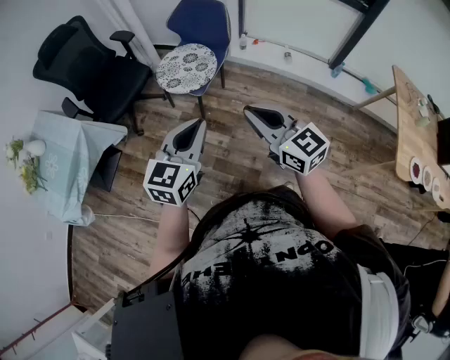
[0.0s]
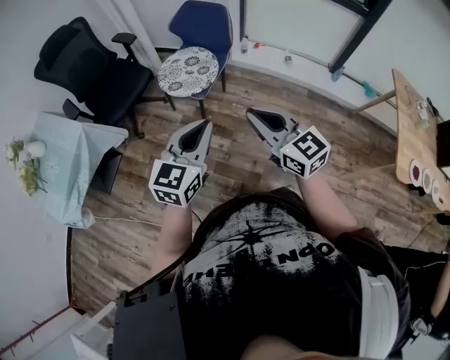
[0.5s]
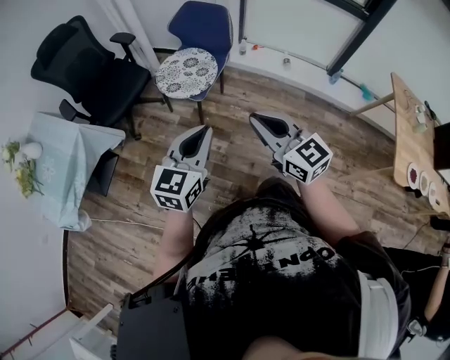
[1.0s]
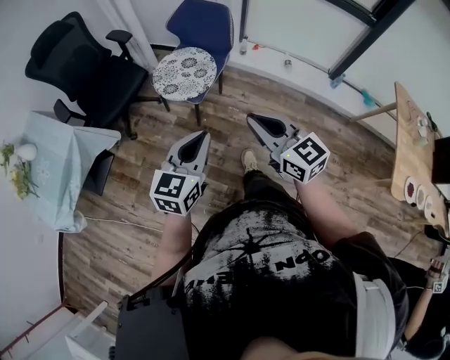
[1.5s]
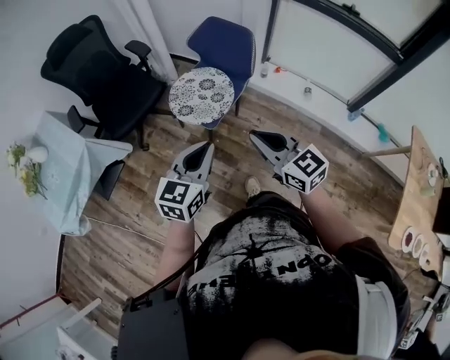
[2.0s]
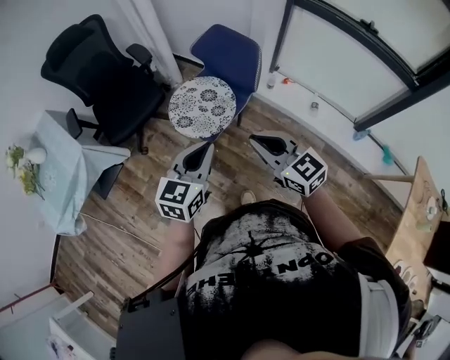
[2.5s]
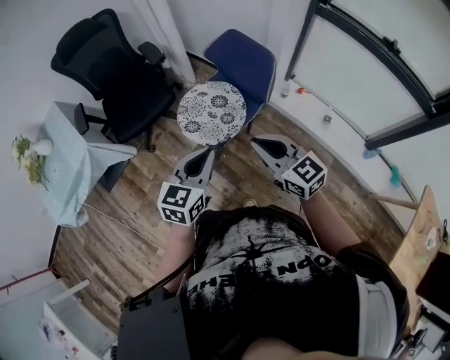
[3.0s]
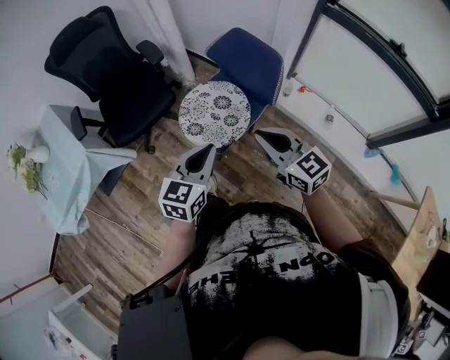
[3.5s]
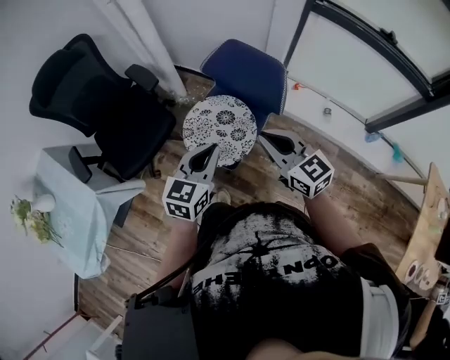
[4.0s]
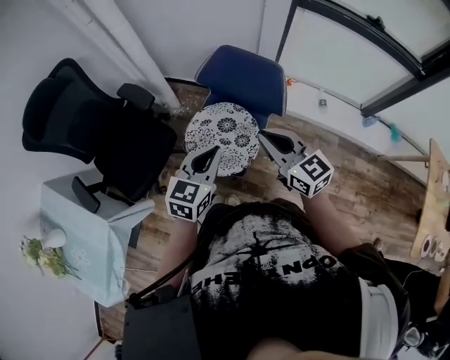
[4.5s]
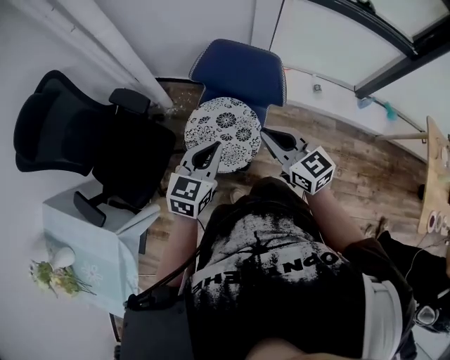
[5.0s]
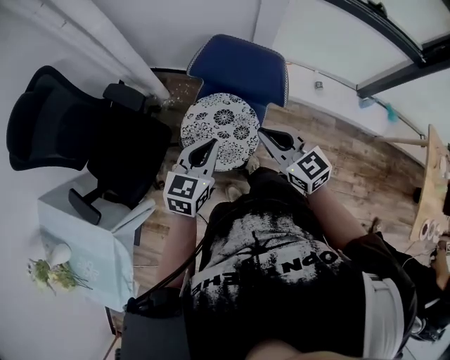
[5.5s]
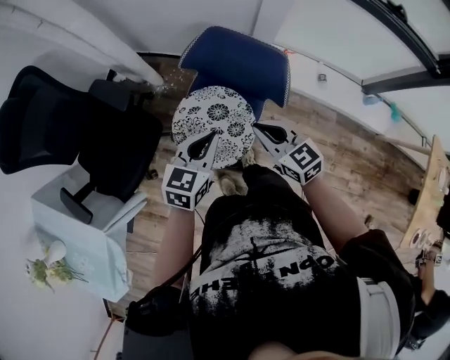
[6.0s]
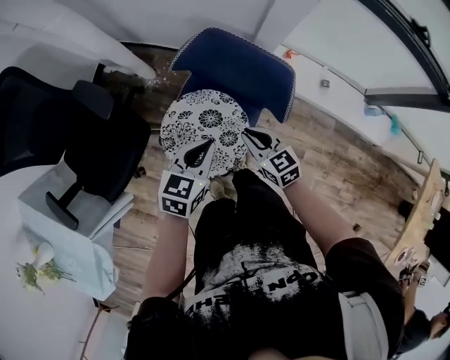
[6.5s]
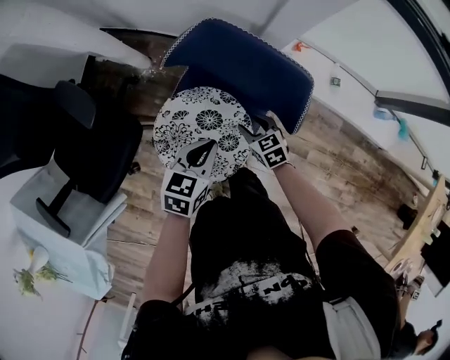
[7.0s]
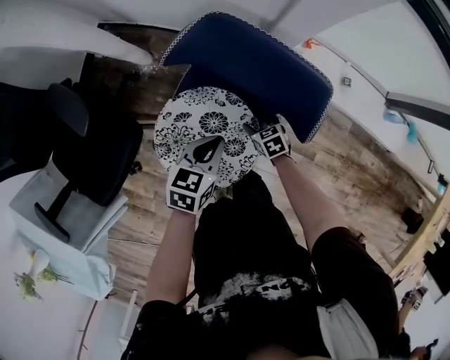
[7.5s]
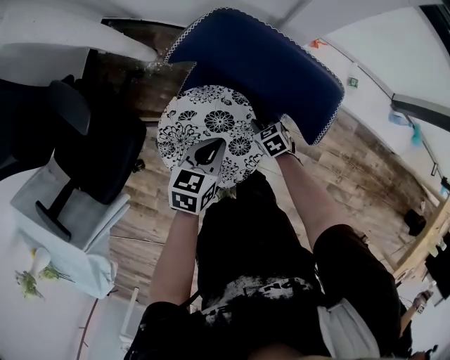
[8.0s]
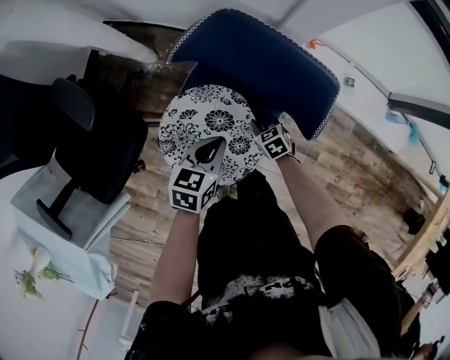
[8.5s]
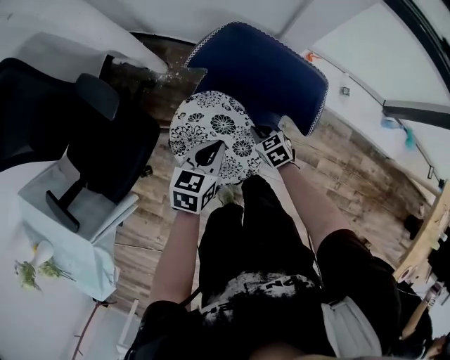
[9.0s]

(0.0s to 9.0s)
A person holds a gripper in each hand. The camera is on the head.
0.0s - 2.0s: The grippers both shift forward by about 15 cm.
2.0s - 4.5s: The grippers both shift forward by about 35 cm.
4.5s - 7.0s: The left gripper is displaced downward and forward by approximately 30 cm, and rotates roughly 20 degrees, while the right gripper is displaced downward and forward by roughly 50 cm, angles its fingers downward, by roughly 40 degrees, and opens up.
7.0s - 9.0s: The left gripper goes downward and returns, roughly 5 cm each way. Meanwhile the right gripper travels downward and back again, about 10 cm each way, and closes.

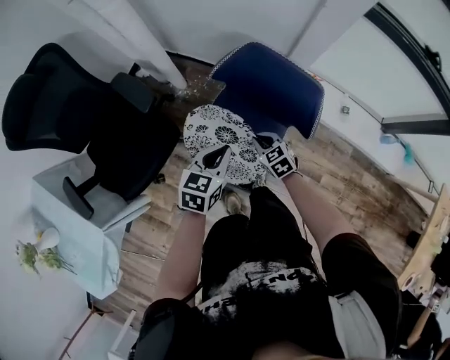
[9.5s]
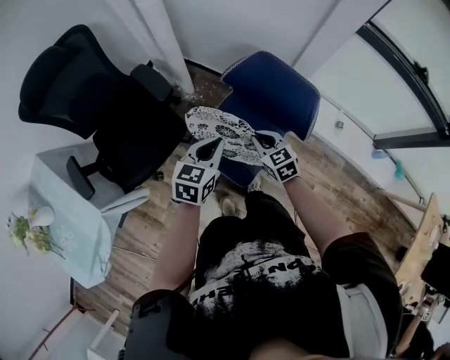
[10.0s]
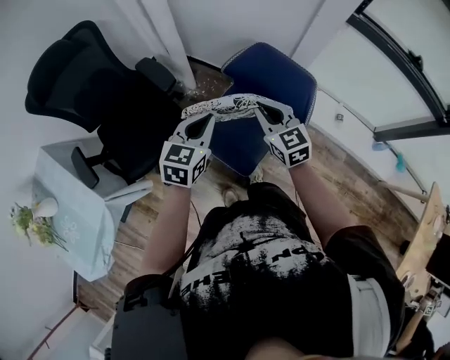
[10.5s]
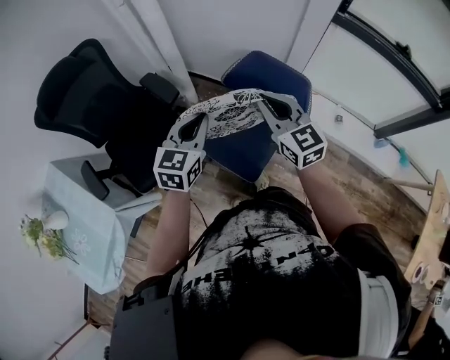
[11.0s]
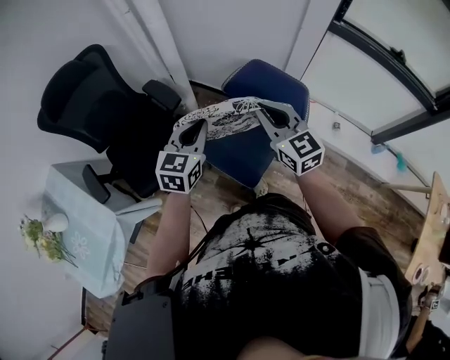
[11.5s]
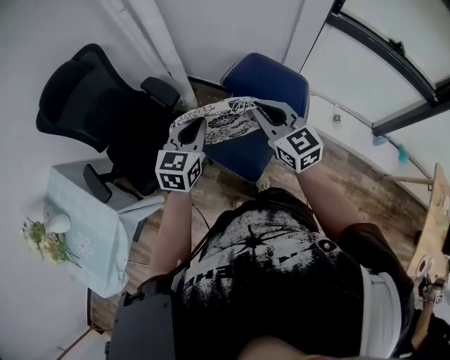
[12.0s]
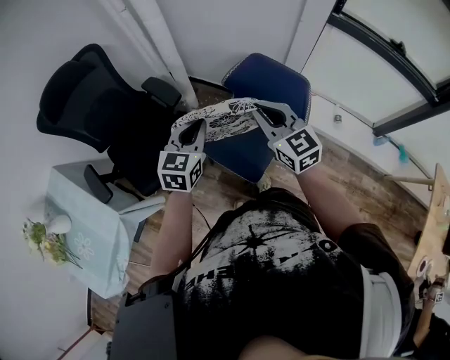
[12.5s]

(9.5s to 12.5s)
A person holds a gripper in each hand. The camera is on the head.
9.5s - 11.0s: The left gripper moves upward and to the left, about 20 cm, and rotates some 20 degrees; the right gripper shifts roughly 40 cm upward, and tilts its fingers about 40 degrees upward.
11.0s - 12.5s: There are only small adjustments of the grippers.

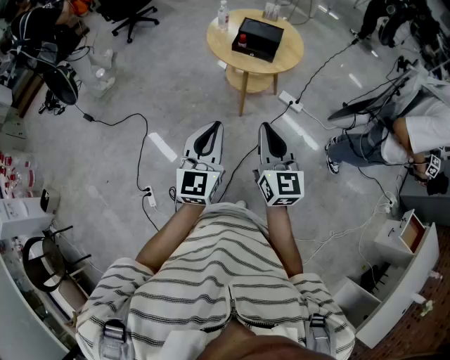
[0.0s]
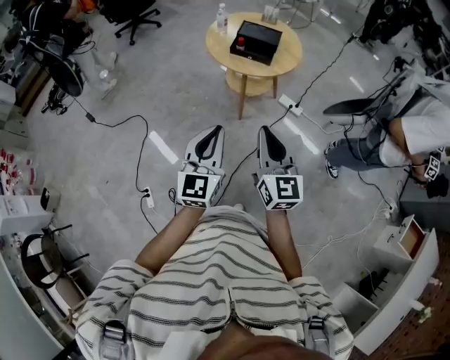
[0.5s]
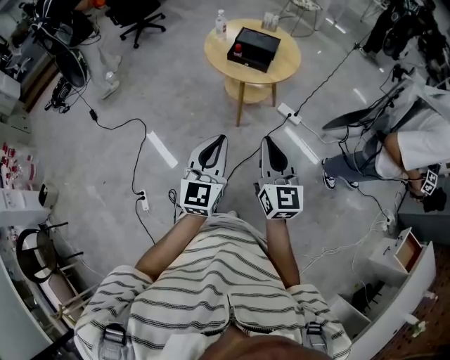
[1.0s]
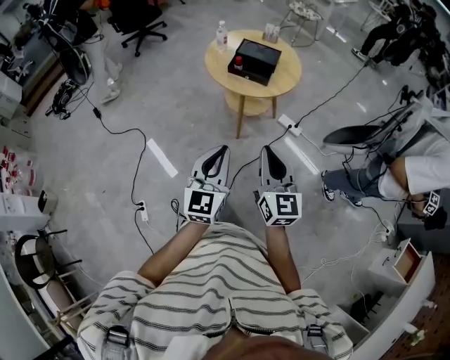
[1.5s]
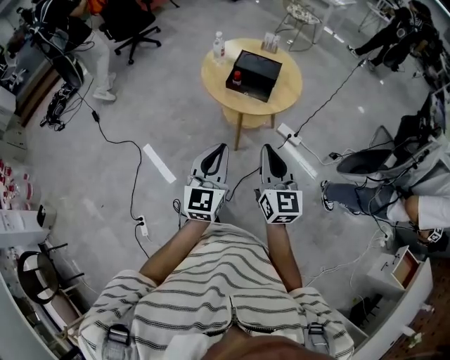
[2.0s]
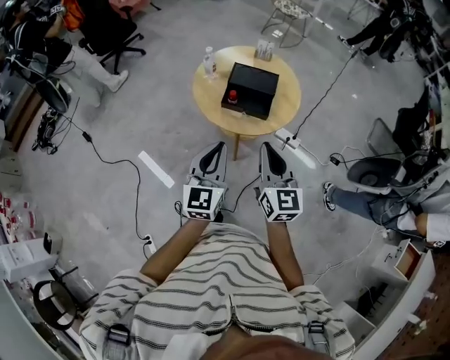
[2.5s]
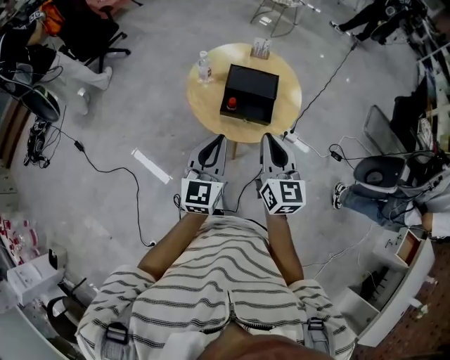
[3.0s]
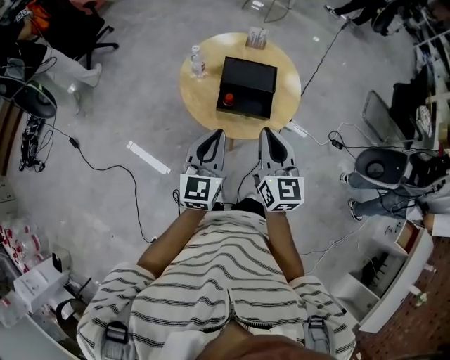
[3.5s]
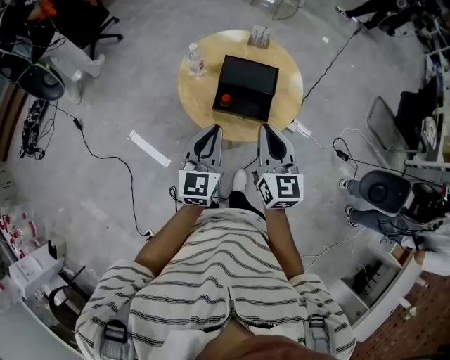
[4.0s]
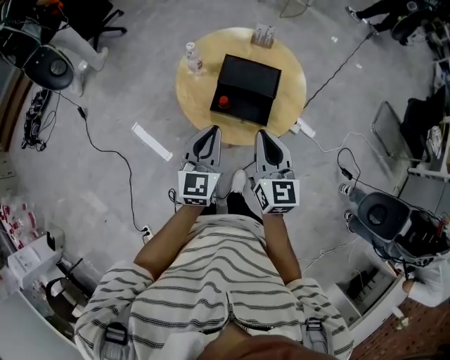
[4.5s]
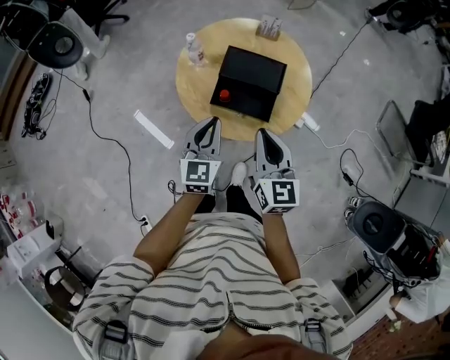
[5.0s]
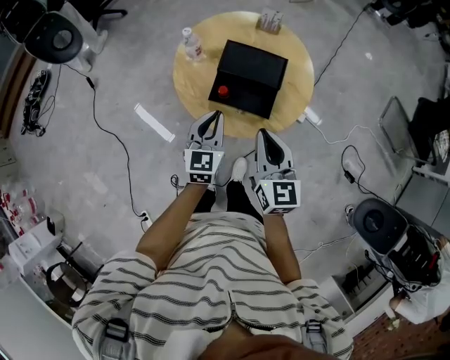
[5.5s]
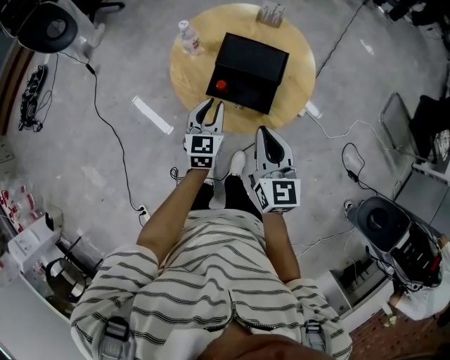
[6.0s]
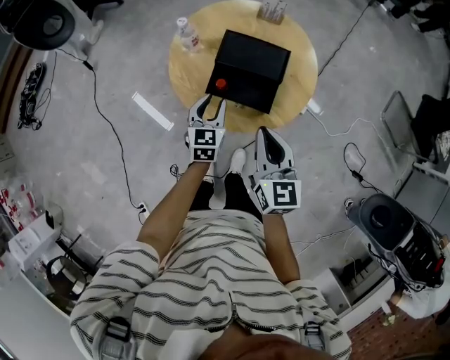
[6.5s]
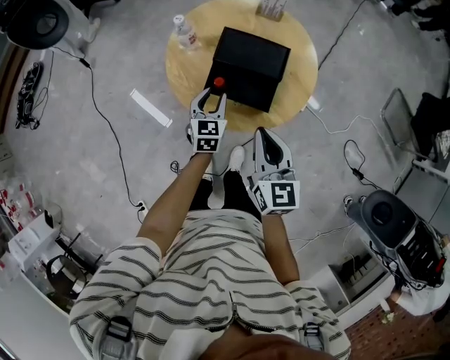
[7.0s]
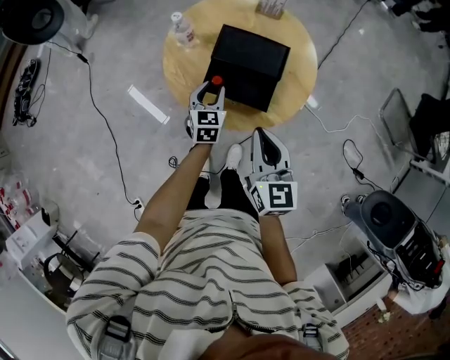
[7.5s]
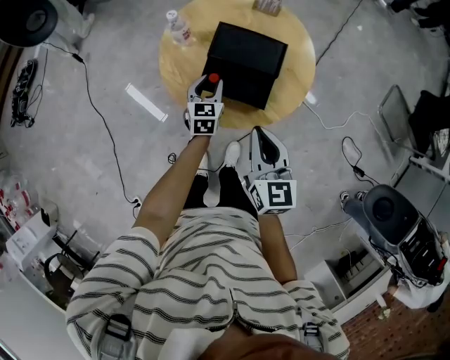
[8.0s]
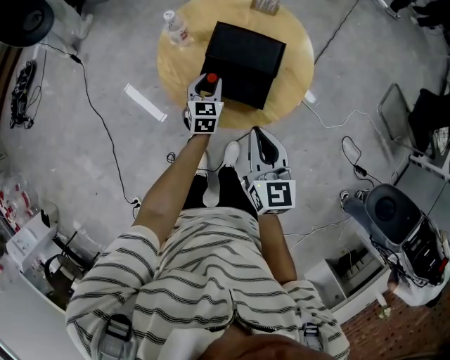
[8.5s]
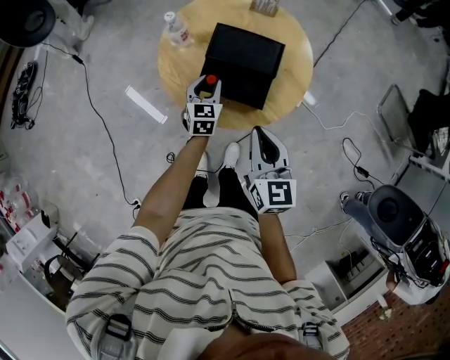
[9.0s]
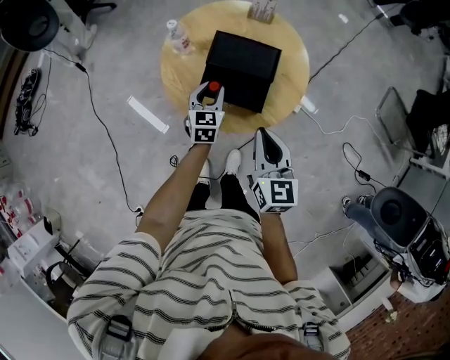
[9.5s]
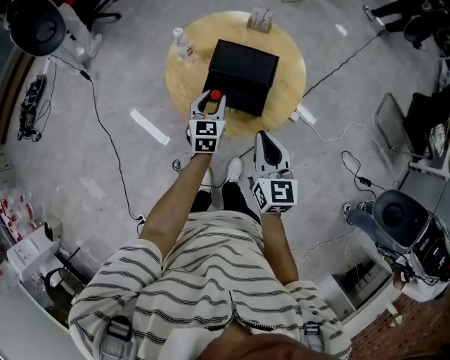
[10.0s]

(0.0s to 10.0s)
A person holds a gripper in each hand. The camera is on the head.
0.0s - 2.0s: Both grippers travel together forward and to the right, approximately 15 cm.
2.0s - 4.0s: Both grippers travel together forward, approximately 30 cm.
4.0s - 6.0s: The right gripper goes some 10 cm downward. Meanwhile the left gripper goes about 20 cm downward and forward.
6.0s - 8.0s: The left gripper moves downward and forward, roughly 10 cm.
8.0s - 10.0s: The left gripper goes about 5 cm upward.

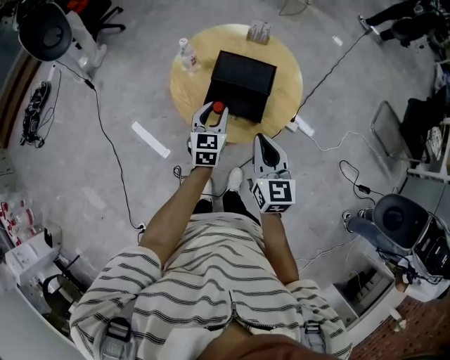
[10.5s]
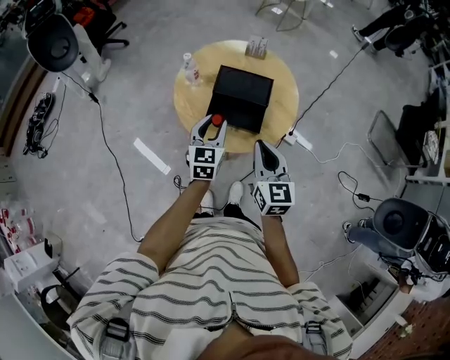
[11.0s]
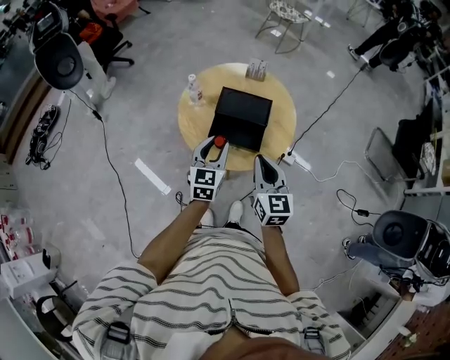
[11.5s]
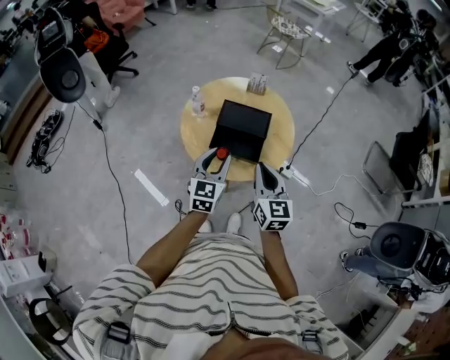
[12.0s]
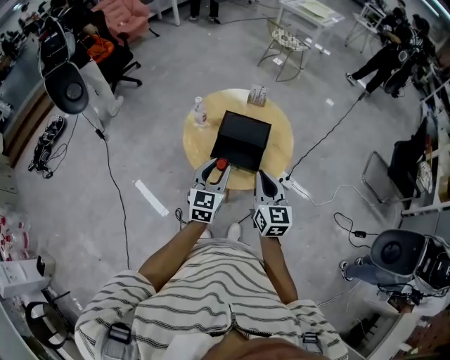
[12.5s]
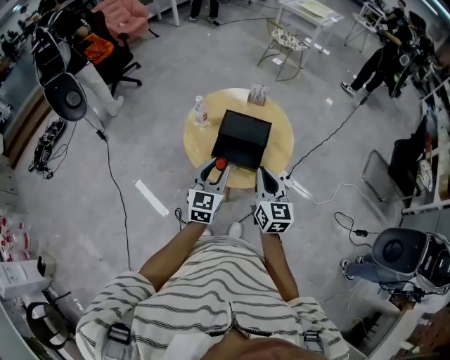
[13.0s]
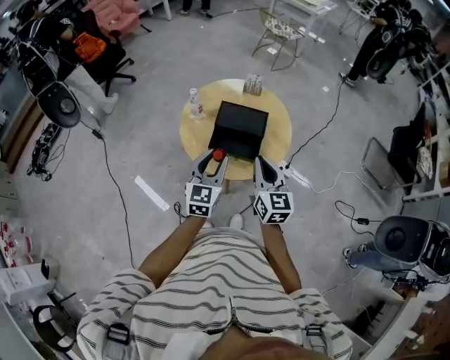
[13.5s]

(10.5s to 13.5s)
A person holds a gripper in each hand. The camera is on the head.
10.5s - 12.0s: The left gripper heads upward and backward, covering roughly 10 cm.
12.0s - 13.5s: The grippers move only a little.

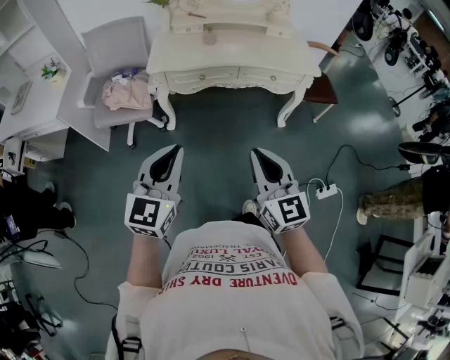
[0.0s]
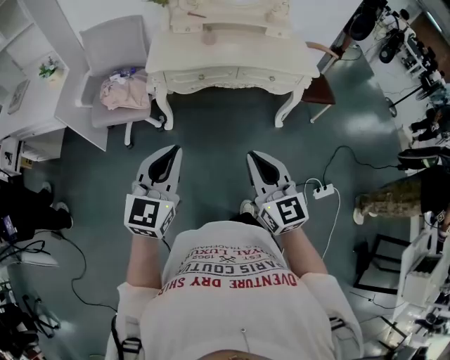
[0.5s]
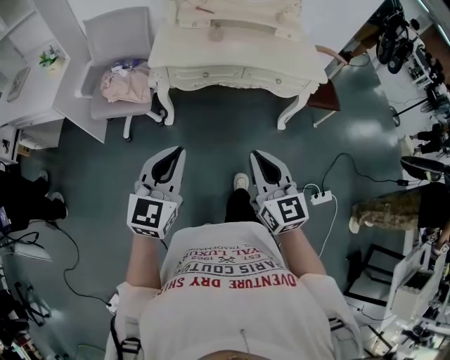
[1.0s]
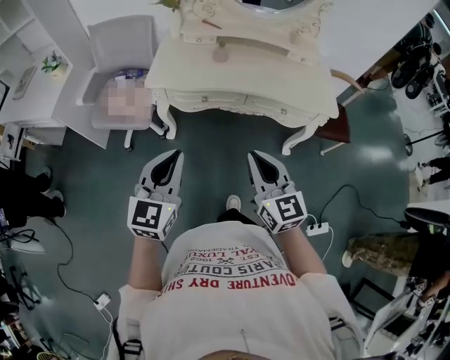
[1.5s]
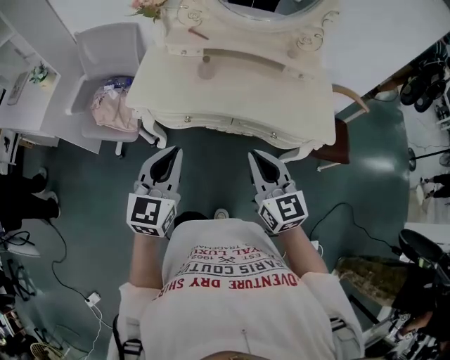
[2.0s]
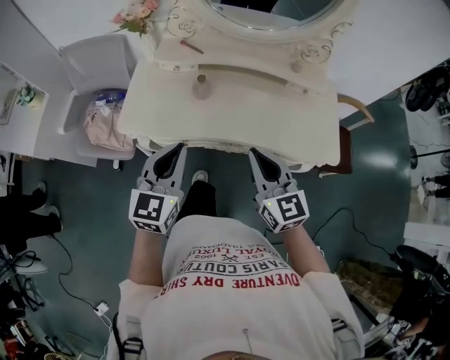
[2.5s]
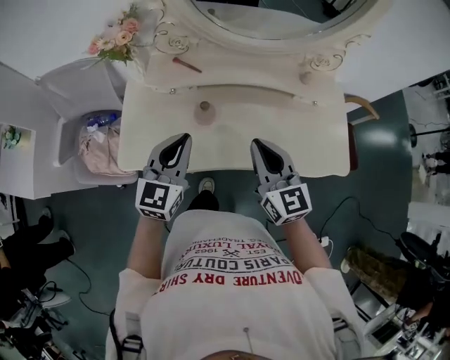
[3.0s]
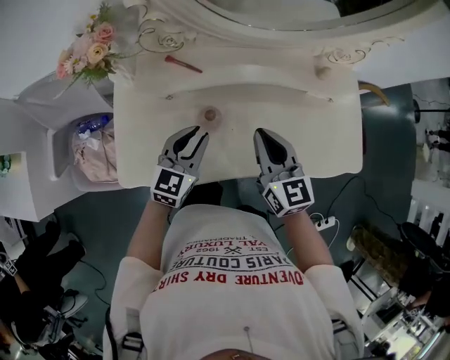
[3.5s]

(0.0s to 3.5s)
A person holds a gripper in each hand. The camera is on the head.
0.0s - 2.0s: The grippers both shift forward and to the right by about 40 cm.
2.0s - 3.5s: The left gripper is displaced forward and downward by some 40 cm, and changes its angle by some 30 degrees, while the right gripper travels forward by approximately 40 cm.
